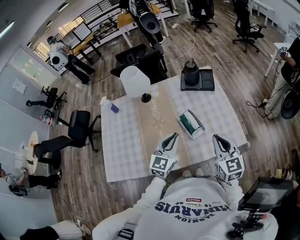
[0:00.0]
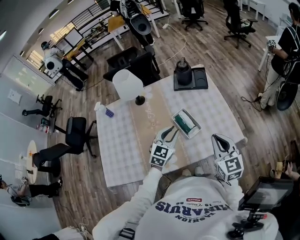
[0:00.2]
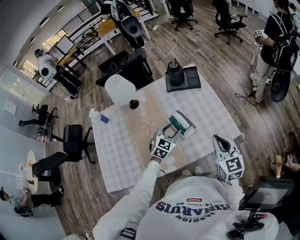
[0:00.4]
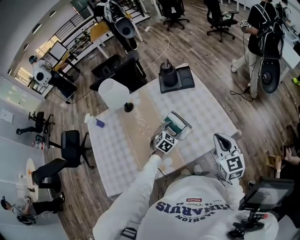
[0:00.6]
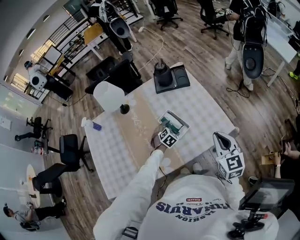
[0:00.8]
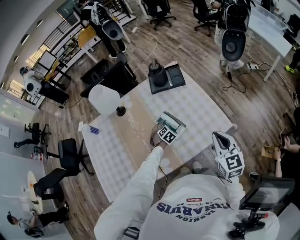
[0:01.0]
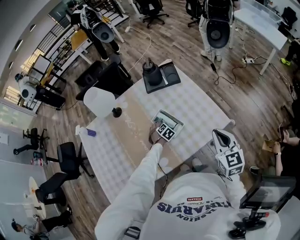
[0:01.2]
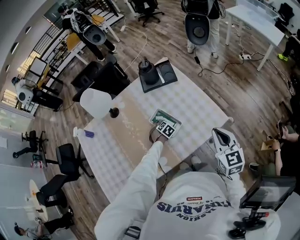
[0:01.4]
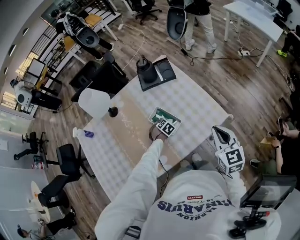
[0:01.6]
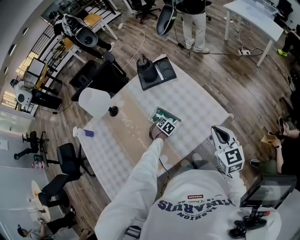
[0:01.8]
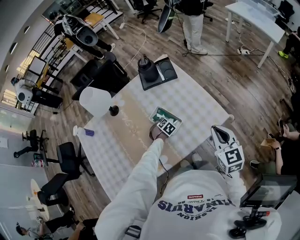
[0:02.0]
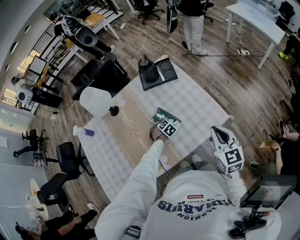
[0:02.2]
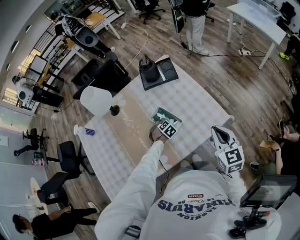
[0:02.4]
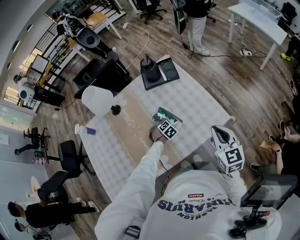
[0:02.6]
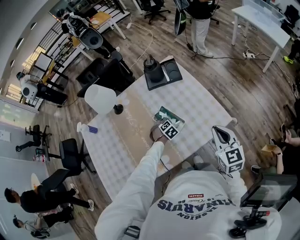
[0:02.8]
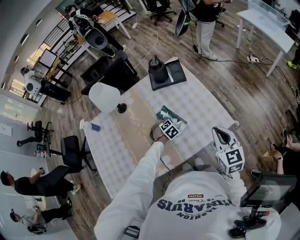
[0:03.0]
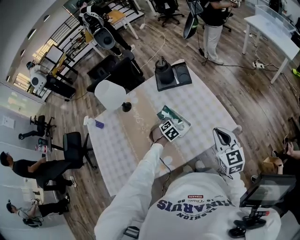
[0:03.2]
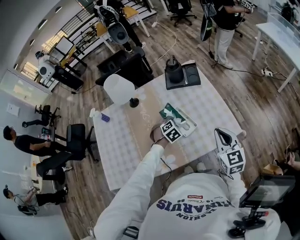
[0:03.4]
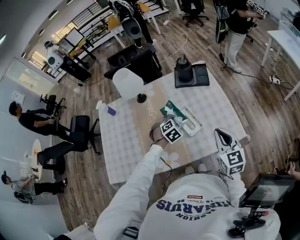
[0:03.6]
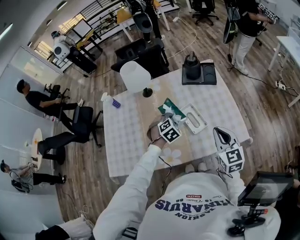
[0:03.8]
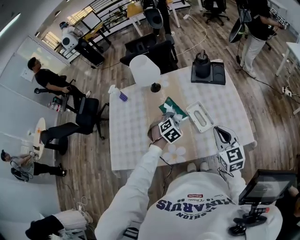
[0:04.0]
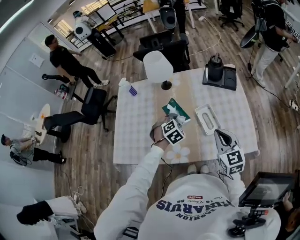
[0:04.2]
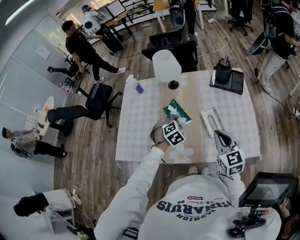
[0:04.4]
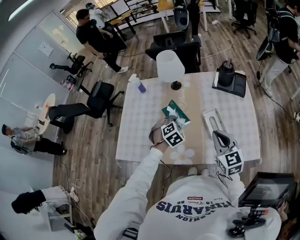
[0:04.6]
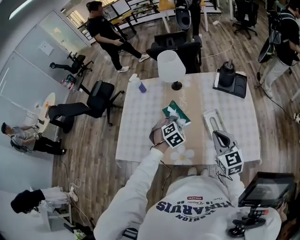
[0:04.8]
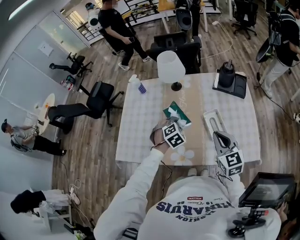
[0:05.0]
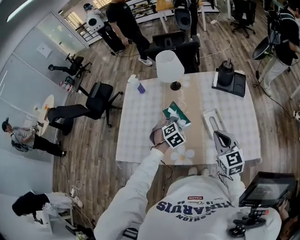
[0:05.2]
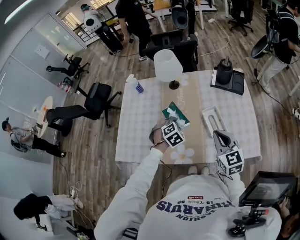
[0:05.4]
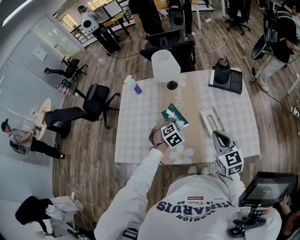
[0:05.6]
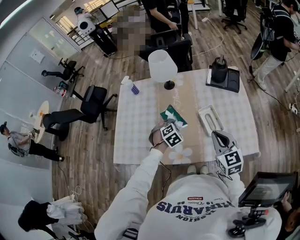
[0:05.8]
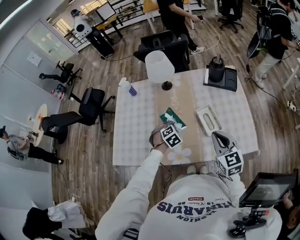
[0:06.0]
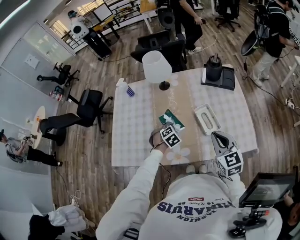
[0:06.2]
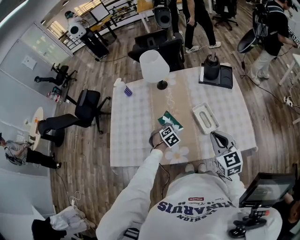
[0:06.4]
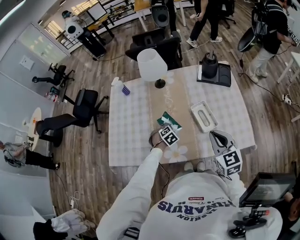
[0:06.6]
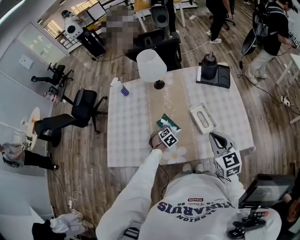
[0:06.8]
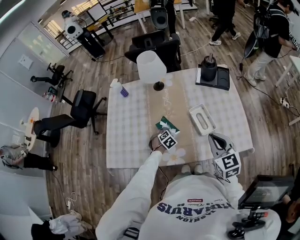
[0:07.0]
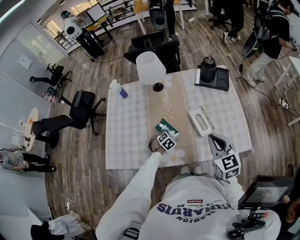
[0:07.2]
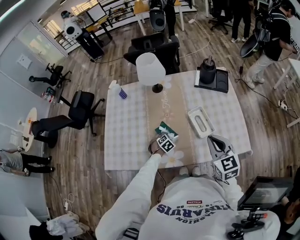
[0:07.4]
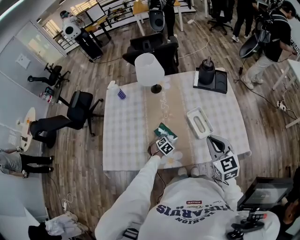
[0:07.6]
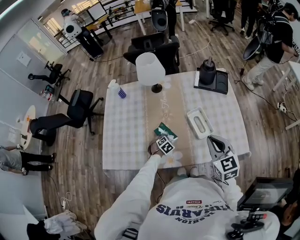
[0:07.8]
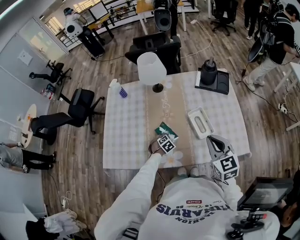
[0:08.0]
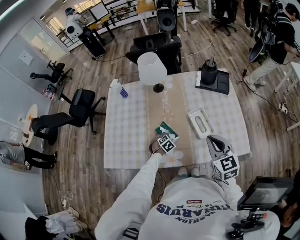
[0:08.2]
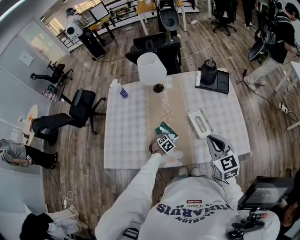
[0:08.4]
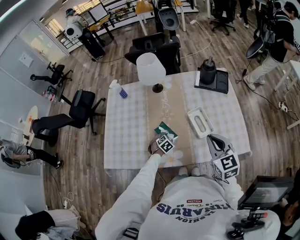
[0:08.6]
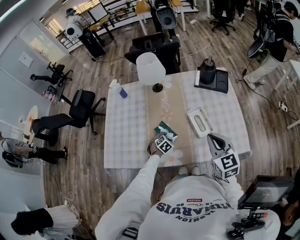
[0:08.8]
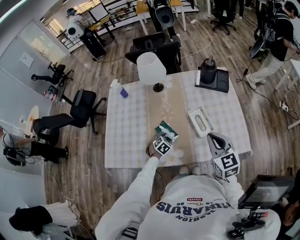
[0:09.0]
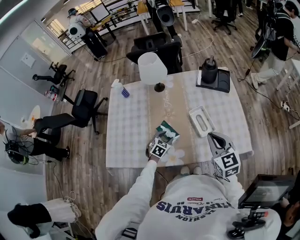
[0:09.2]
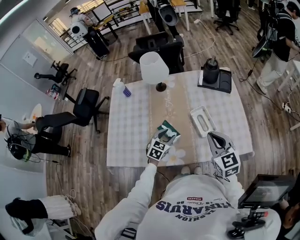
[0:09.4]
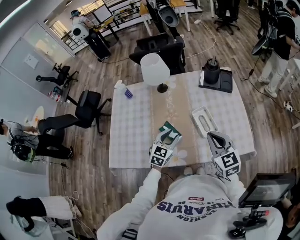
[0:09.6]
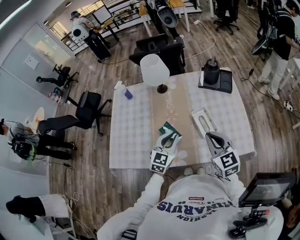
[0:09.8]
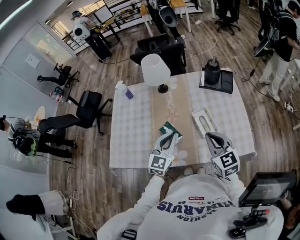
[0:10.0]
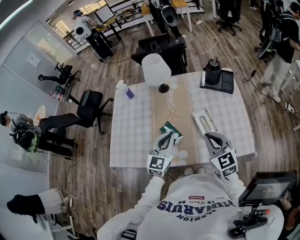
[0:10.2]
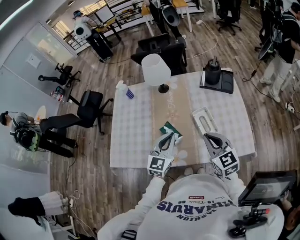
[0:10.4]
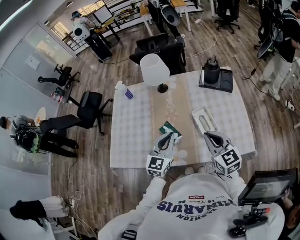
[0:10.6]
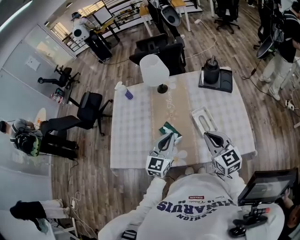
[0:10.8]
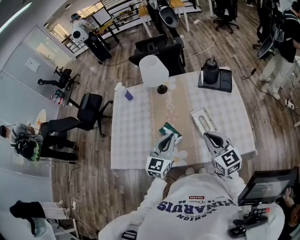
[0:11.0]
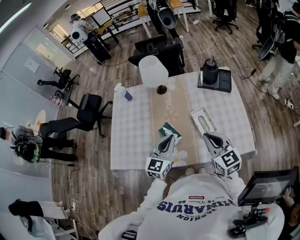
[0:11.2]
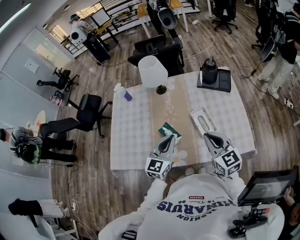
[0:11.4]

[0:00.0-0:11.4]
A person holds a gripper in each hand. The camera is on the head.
0:00.0 to 0:01.4: The right gripper is displaced to the right by approximately 10 cm, and swivels approximately 20 degrees; the left gripper heads downward and forward, covering about 35 cm, angles its fingers downward, by approximately 60 degrees, and opens.
0:01.4 to 0:02.8: The left gripper heads upward, covering approximately 5 cm, and closes.
0:02.8 to 0:04.2: The right gripper changes place by about 15 cm, and rotates roughly 30 degrees. The left gripper heads upward, covering about 20 cm, and turns by approximately 20 degrees.
0:04.2 to 0:05.6: The left gripper goes roughly 5 cm to the left.
0:05.6 to 0:07.2: The left gripper goes roughly 20 cm downward.
0:07.2 to 0:08.6: The grippers move only a little.
0:08.6 to 0:10.0: The left gripper travels upward by some 30 cm, and tips its fingers upward by roughly 60 degrees.
0:10.0 to 0:11.4: The grippers make only small movements.

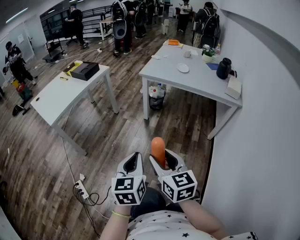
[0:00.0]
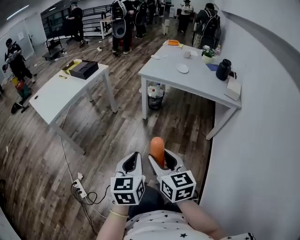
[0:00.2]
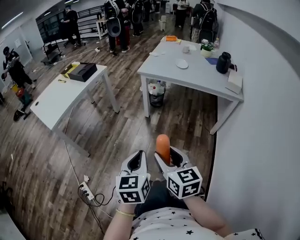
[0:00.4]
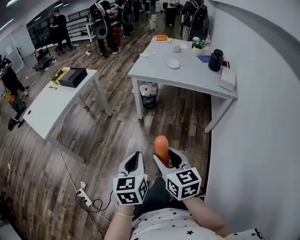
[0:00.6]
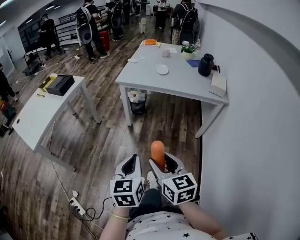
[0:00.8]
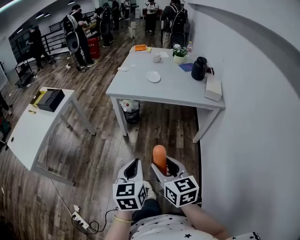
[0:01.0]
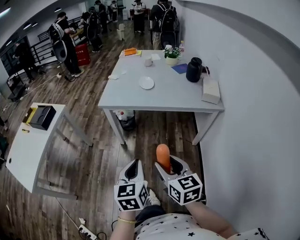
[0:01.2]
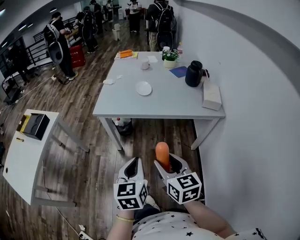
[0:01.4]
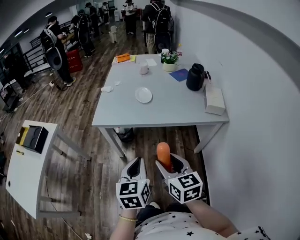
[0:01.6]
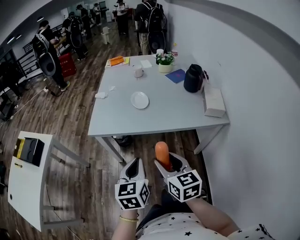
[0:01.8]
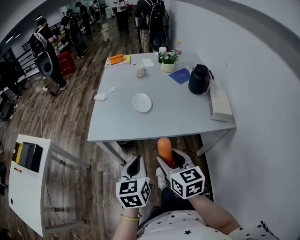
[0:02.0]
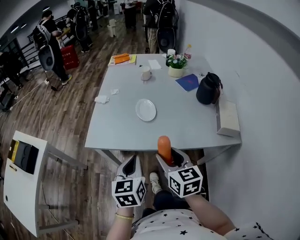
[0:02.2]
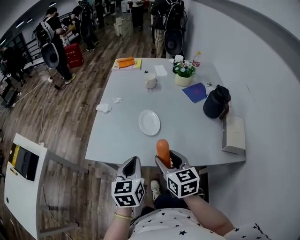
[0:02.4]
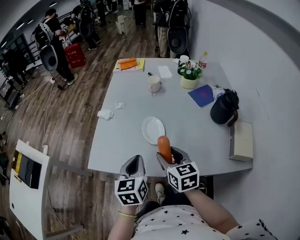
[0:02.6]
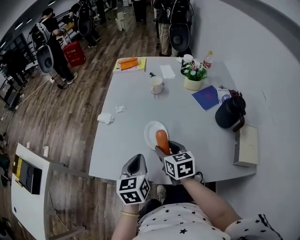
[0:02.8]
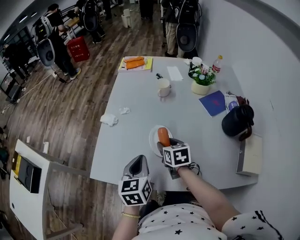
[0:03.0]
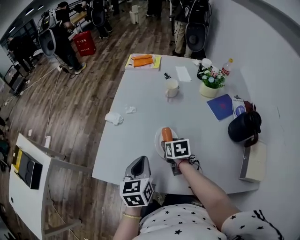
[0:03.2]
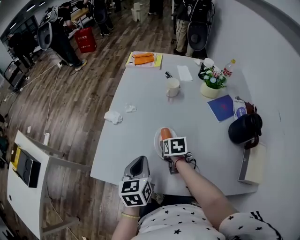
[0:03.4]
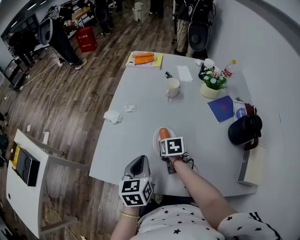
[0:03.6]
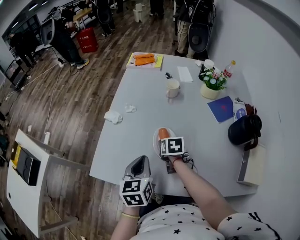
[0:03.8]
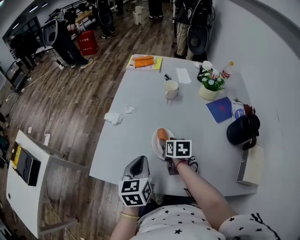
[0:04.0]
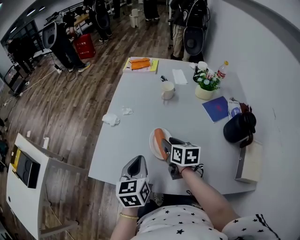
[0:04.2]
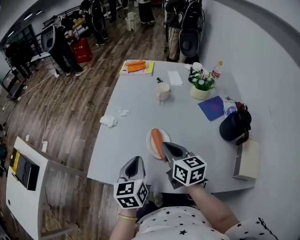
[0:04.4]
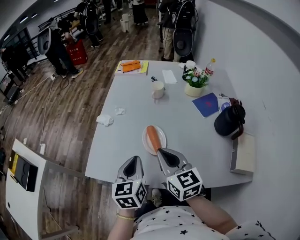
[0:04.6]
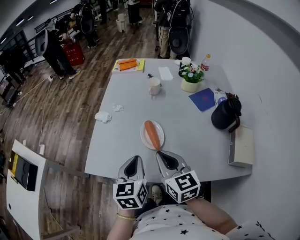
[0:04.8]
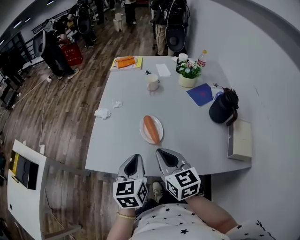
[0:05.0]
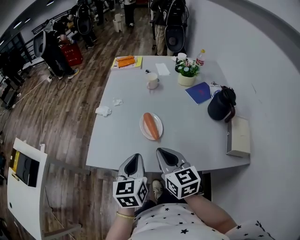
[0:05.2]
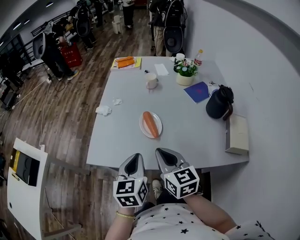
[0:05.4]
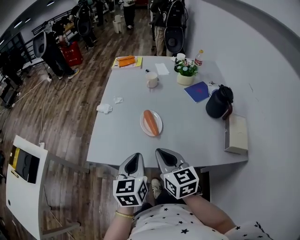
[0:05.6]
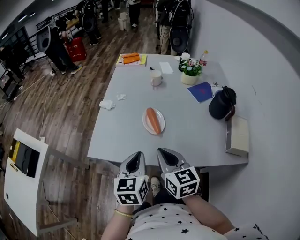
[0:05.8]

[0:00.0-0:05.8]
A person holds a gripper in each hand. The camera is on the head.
0:00.0 to 0:01.4: The grippers both shift forward and to the right by roughly 35 cm. The right gripper changes its angle by about 20 degrees.
0:01.4 to 0:02.8: Both grippers are carried forward, some 50 cm.
0:02.8 to 0:04.4: The right gripper travels downward and back again, some 10 cm each way, and closes its fingers.
0:04.4 to 0:05.8: Both grippers move backward, roughly 15 cm.

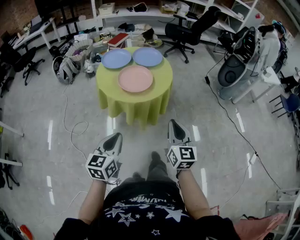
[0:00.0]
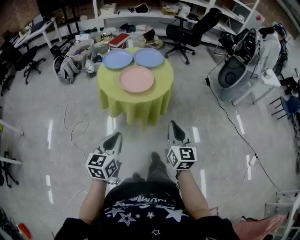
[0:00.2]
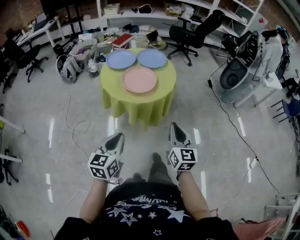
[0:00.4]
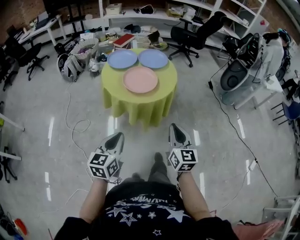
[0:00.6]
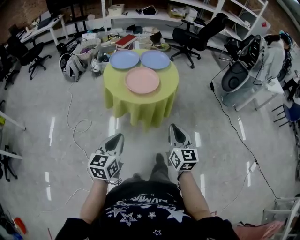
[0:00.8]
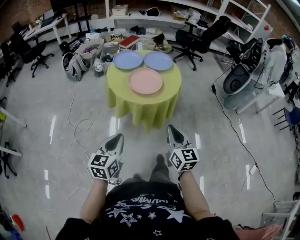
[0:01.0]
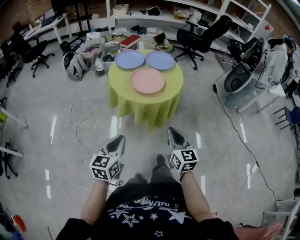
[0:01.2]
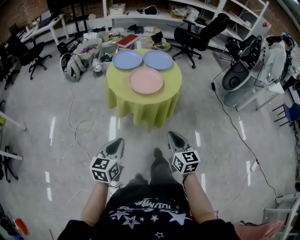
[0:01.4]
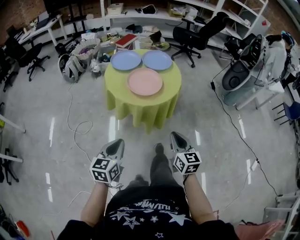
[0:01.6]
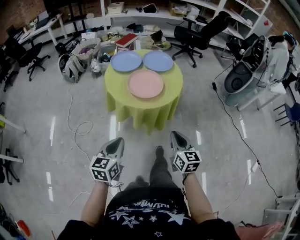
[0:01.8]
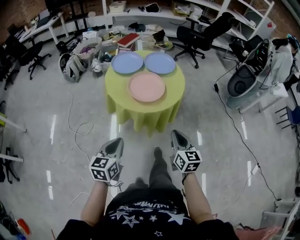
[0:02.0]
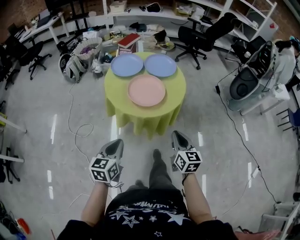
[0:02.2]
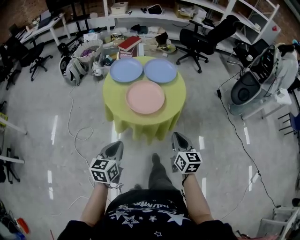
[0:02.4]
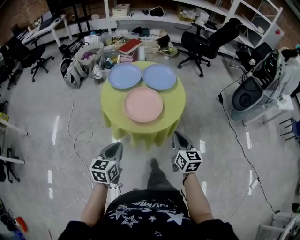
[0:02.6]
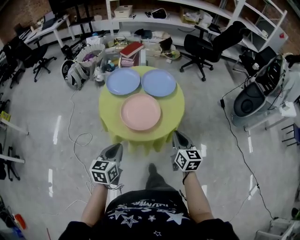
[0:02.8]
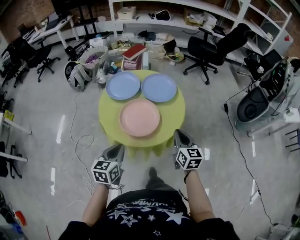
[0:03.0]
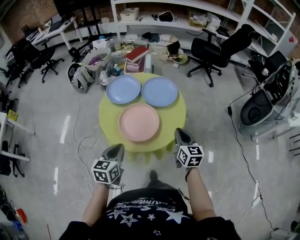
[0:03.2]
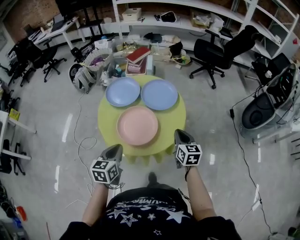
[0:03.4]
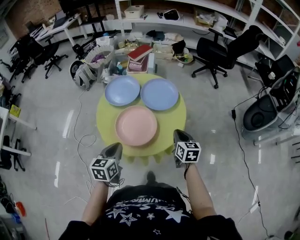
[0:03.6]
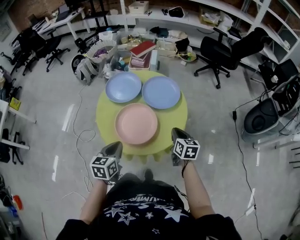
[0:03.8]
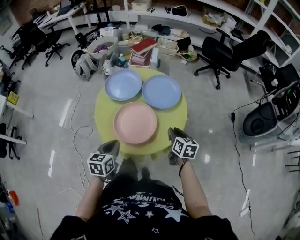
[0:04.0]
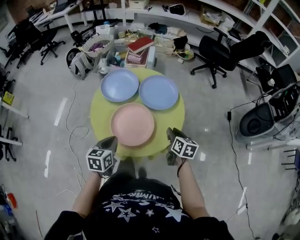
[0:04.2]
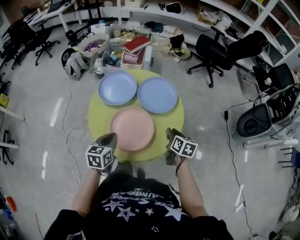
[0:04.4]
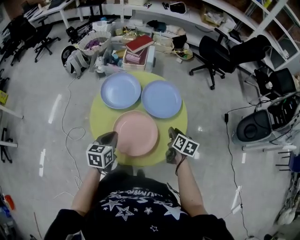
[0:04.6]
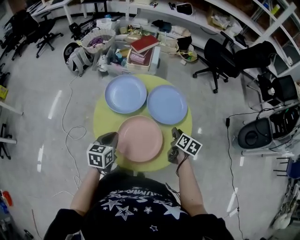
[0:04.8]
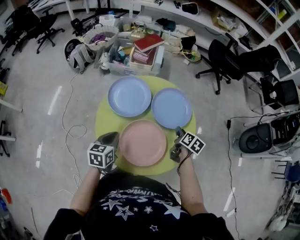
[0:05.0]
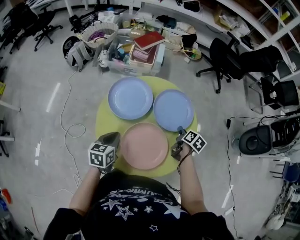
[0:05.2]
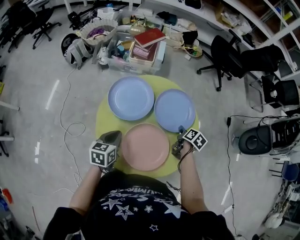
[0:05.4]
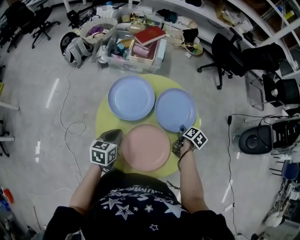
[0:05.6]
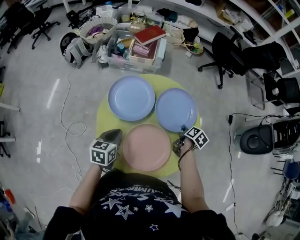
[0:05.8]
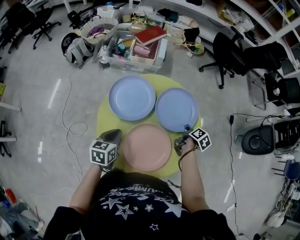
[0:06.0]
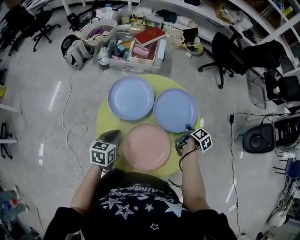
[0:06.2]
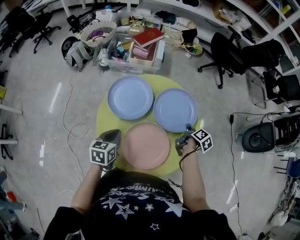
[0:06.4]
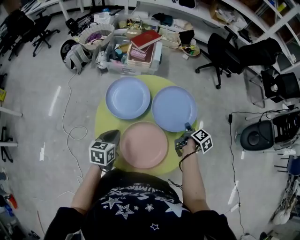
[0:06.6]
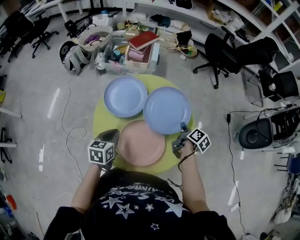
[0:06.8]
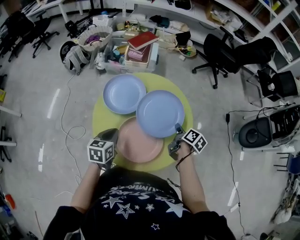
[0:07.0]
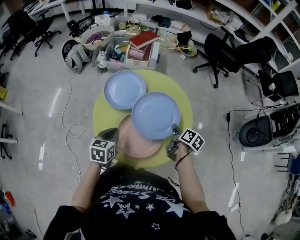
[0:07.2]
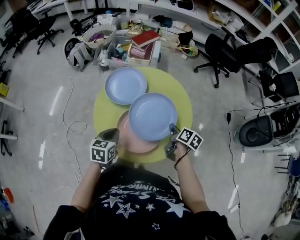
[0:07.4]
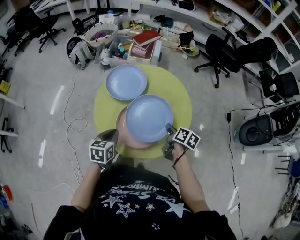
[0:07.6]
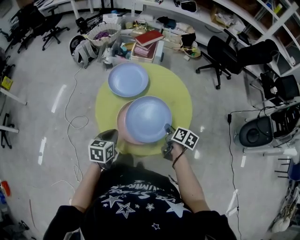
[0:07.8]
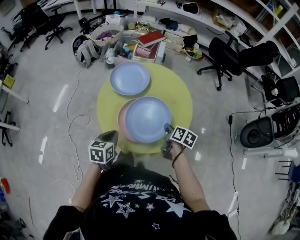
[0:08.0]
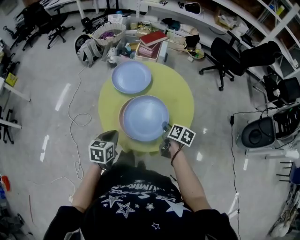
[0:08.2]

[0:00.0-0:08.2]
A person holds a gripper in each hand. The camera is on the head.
0:00.0 to 0:01.6: The left gripper ends up about 5 cm from where it was; the right gripper goes roughly 5 cm downward.
0:01.6 to 0:03.2: The grippers both shift forward by roughly 30 cm.
0:03.2 to 0:05.0: The left gripper moves forward, roughly 20 cm; the right gripper heads forward and downward, covering roughly 25 cm, turns by roughly 40 degrees, and opens.
0:05.0 to 0:06.6: The right gripper changes its angle by roughly 30 degrees, and closes.
0:06.6 to 0:08.2: The left gripper shifts roughly 15 cm backward; the right gripper moves backward and to the left, roughly 15 cm, and changes its angle by about 40 degrees.
